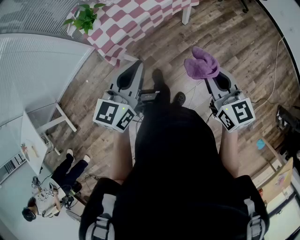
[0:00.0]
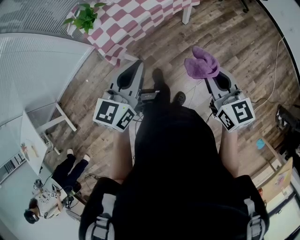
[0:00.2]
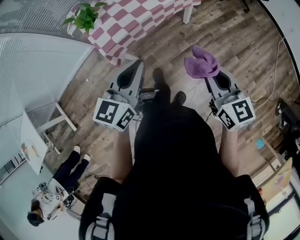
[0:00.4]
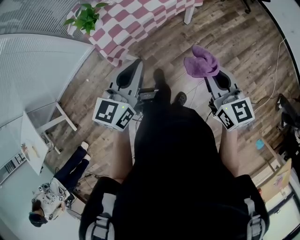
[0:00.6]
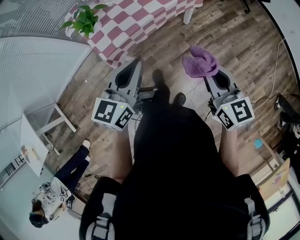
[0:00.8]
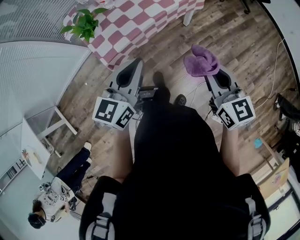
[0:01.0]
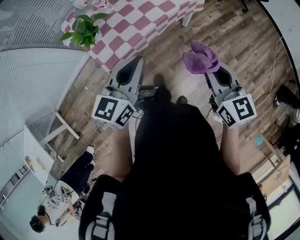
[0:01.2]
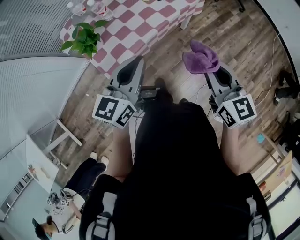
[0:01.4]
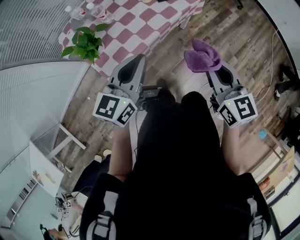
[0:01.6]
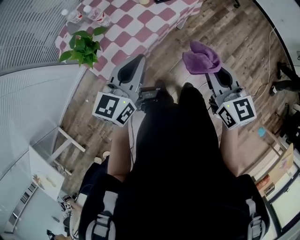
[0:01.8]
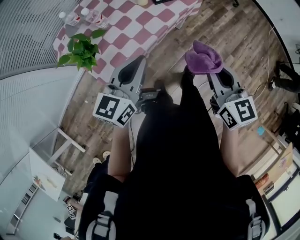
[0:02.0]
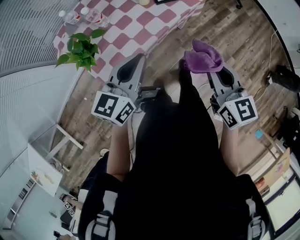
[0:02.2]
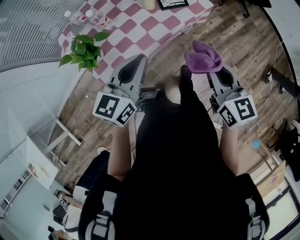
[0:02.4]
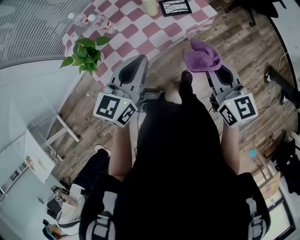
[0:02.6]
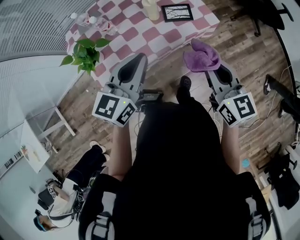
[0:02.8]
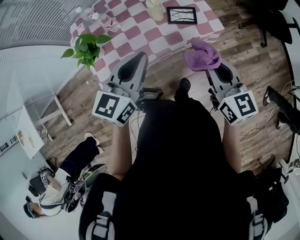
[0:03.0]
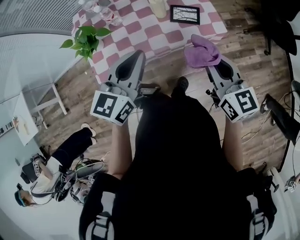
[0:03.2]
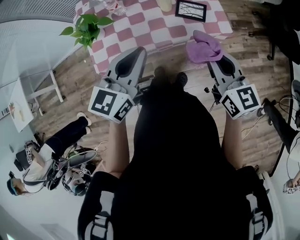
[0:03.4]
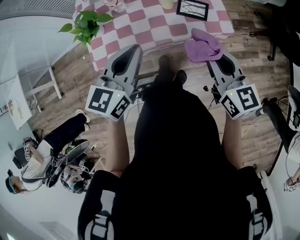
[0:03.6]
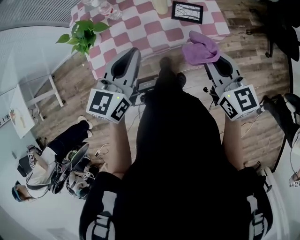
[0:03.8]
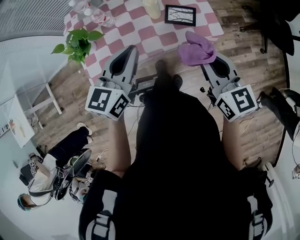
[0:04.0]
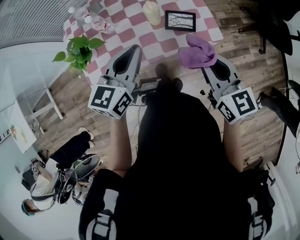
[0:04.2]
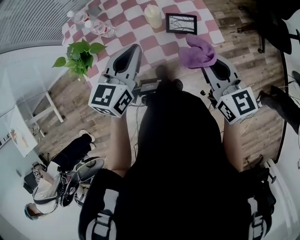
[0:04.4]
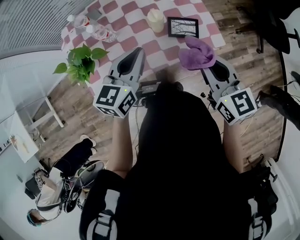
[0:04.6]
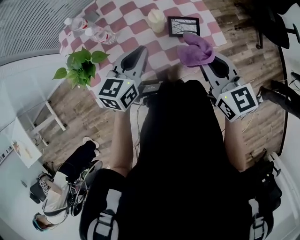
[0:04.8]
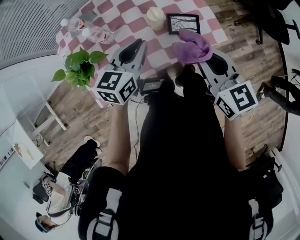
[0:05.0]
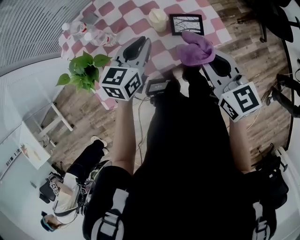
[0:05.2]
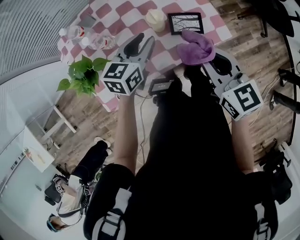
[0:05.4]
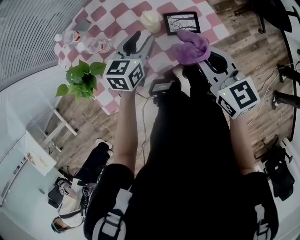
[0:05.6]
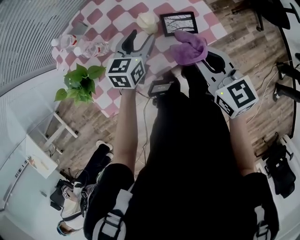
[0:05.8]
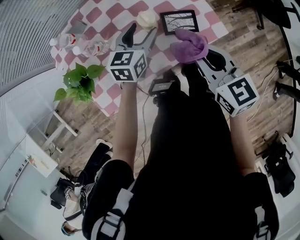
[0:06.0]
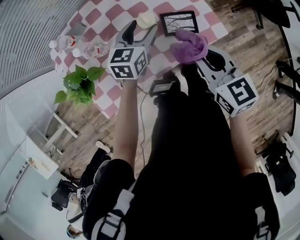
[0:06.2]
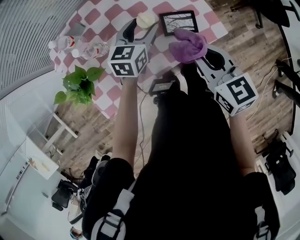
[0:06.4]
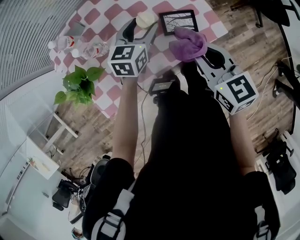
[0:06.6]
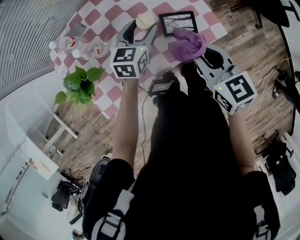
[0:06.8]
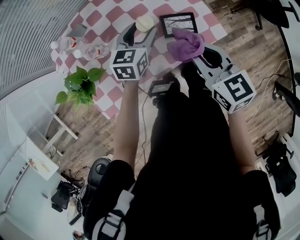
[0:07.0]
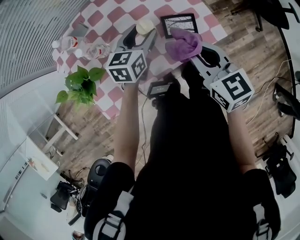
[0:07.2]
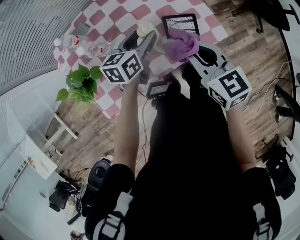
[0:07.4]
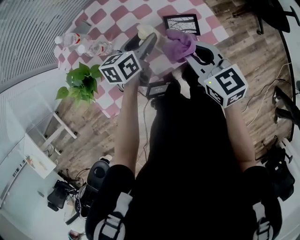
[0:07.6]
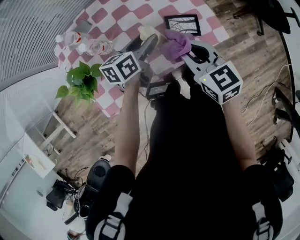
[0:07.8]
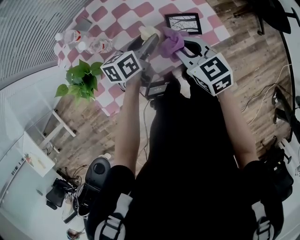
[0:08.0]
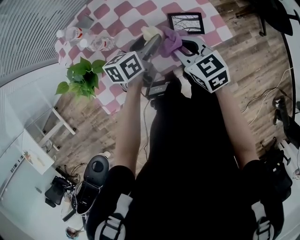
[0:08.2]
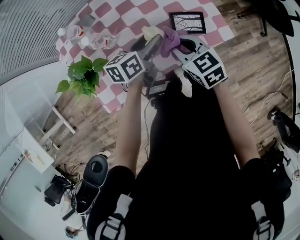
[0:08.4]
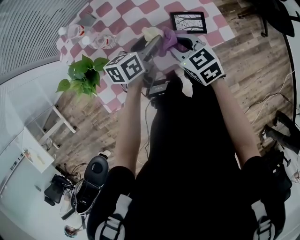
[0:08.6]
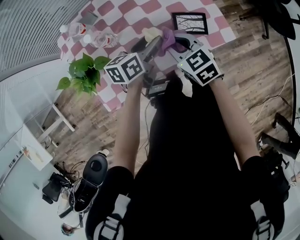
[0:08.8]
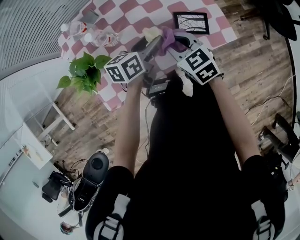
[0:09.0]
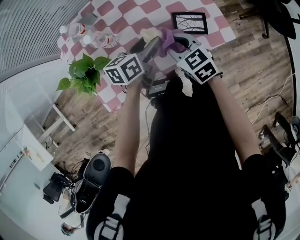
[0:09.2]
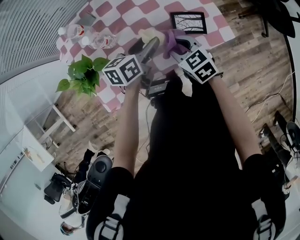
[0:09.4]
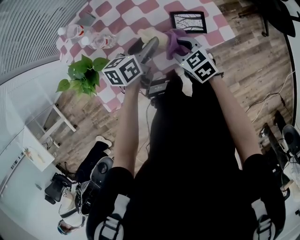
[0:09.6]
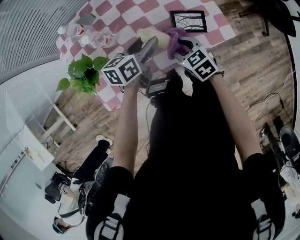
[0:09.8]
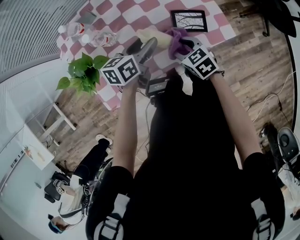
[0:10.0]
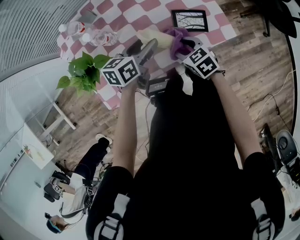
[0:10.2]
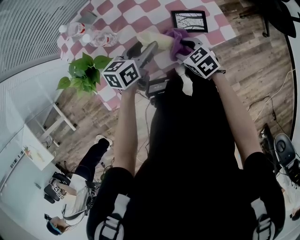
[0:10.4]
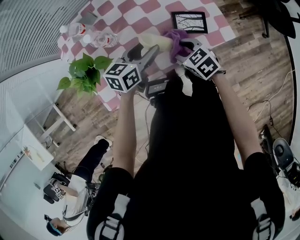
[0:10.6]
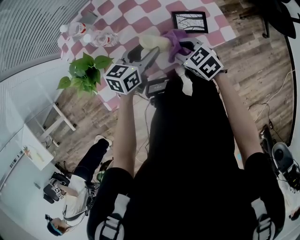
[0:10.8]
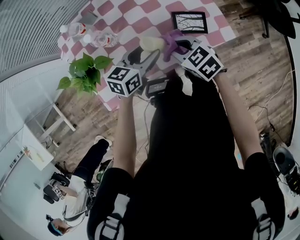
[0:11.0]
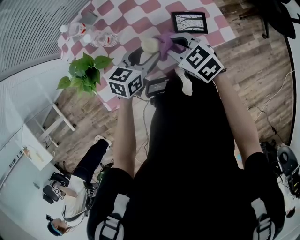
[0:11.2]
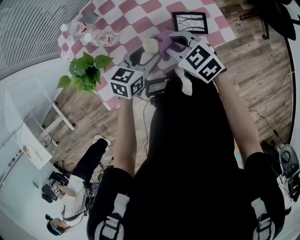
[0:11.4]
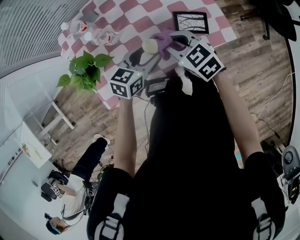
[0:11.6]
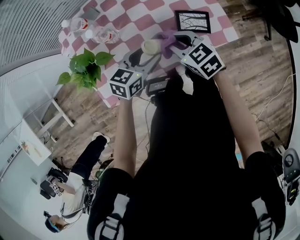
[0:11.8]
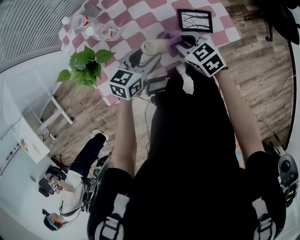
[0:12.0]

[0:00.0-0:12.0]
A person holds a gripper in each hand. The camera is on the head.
0:00.0 to 0:01.6: The grippers both shift forward and to the left by approximately 20 cm.
0:01.6 to 0:03.0: The right gripper shifts some 20 cm forward, and changes its angle by approximately 20 degrees; the left gripper moves forward and to the right, some 15 cm.
0:03.0 to 0:04.4: The grippers both shift forward by about 10 cm.
0:04.4 to 0:06.0: The left gripper goes roughly 20 cm downward and forward, and opens up, while the right gripper heads forward and downward, covering about 10 cm.
0:06.0 to 0:07.6: The left gripper changes its angle by about 20 degrees.
0:07.6 to 0:09.0: The right gripper travels downward and to the left by roughly 10 cm.
0:09.0 to 0:10.4: The right gripper heads downward, covering approximately 10 cm, and opens.
0:10.4 to 0:12.0: The right gripper closes its fingers.

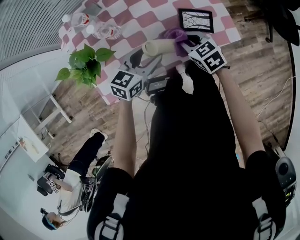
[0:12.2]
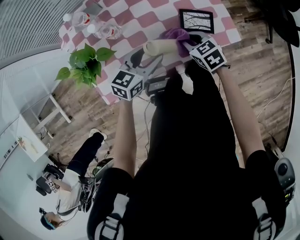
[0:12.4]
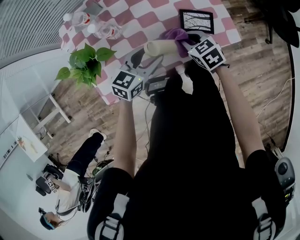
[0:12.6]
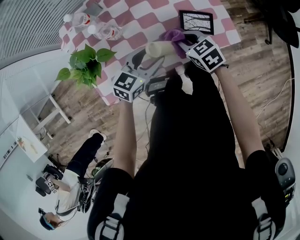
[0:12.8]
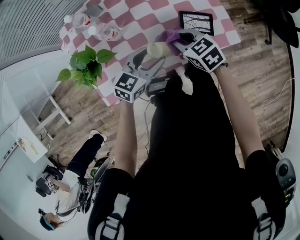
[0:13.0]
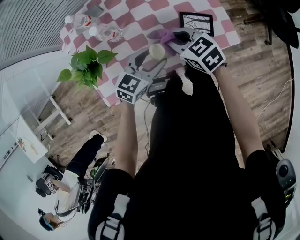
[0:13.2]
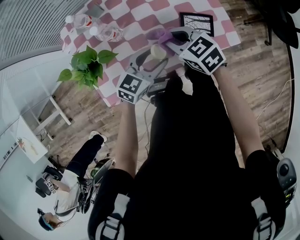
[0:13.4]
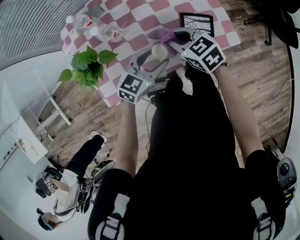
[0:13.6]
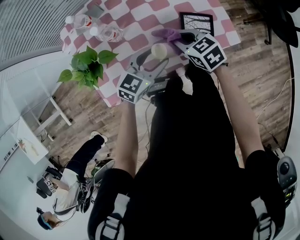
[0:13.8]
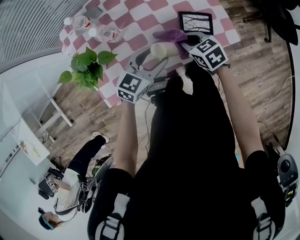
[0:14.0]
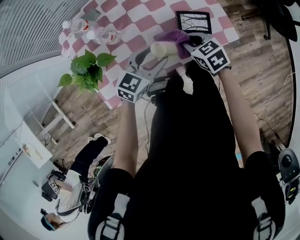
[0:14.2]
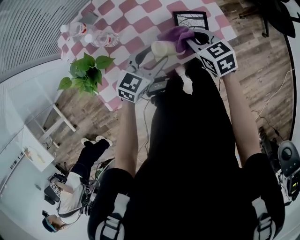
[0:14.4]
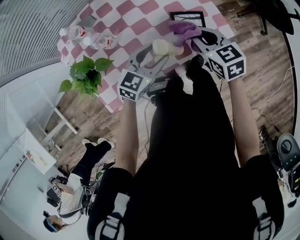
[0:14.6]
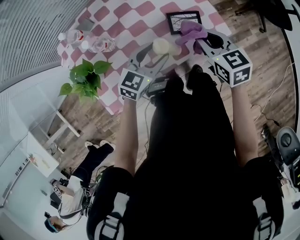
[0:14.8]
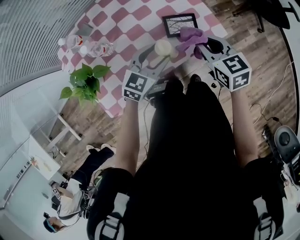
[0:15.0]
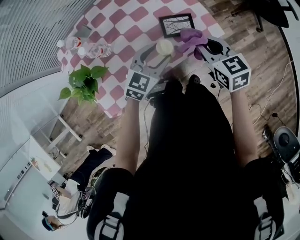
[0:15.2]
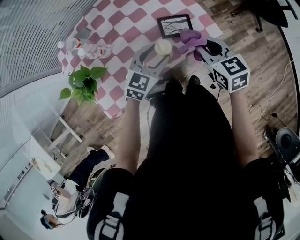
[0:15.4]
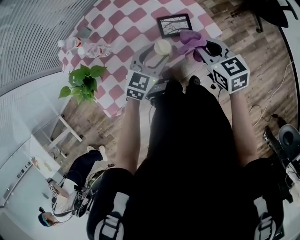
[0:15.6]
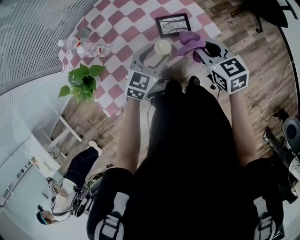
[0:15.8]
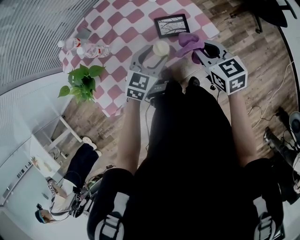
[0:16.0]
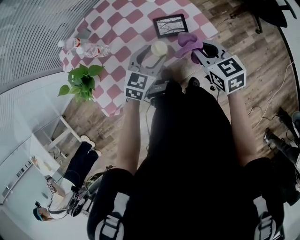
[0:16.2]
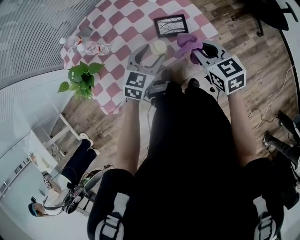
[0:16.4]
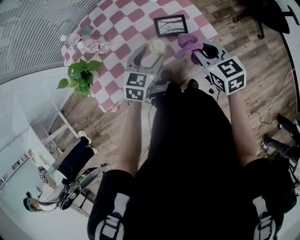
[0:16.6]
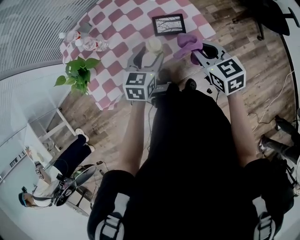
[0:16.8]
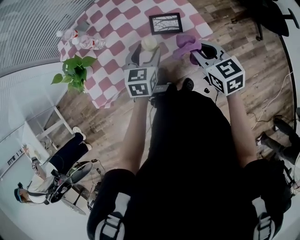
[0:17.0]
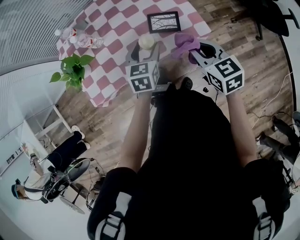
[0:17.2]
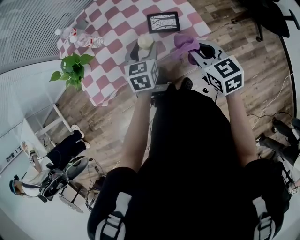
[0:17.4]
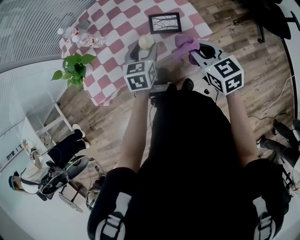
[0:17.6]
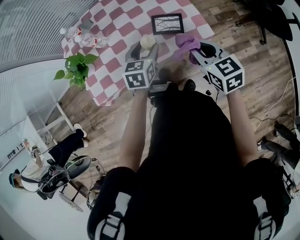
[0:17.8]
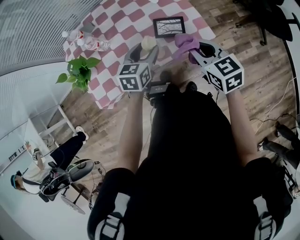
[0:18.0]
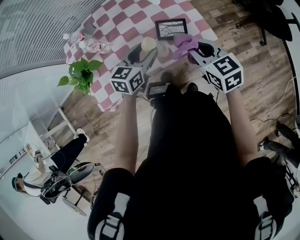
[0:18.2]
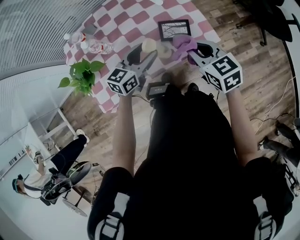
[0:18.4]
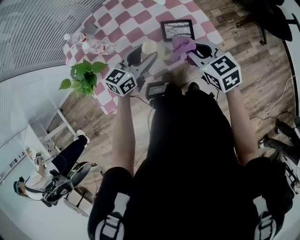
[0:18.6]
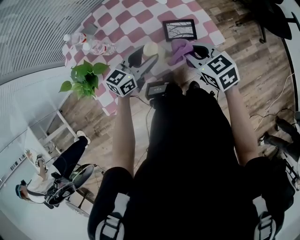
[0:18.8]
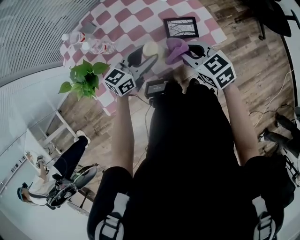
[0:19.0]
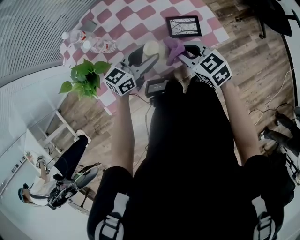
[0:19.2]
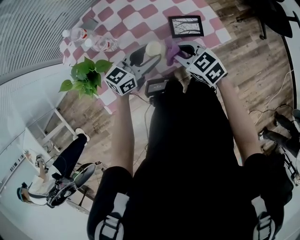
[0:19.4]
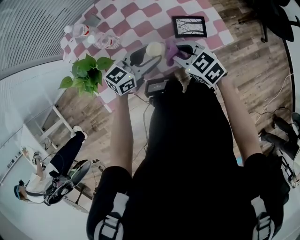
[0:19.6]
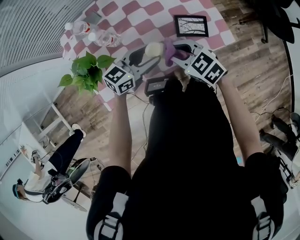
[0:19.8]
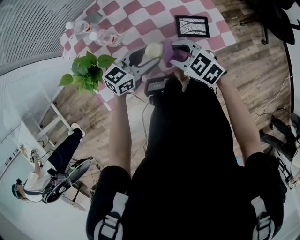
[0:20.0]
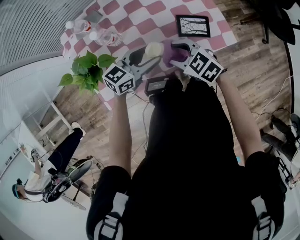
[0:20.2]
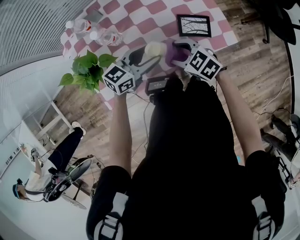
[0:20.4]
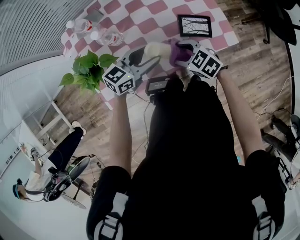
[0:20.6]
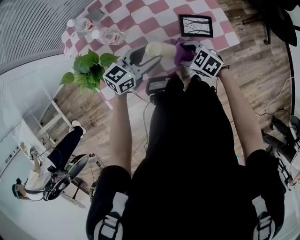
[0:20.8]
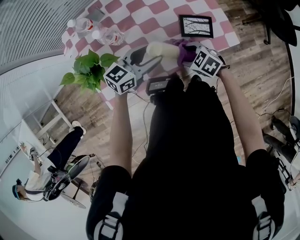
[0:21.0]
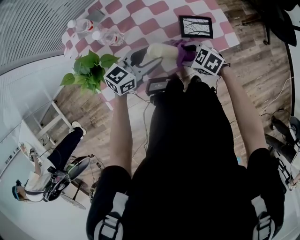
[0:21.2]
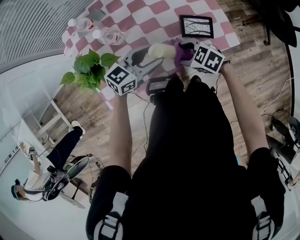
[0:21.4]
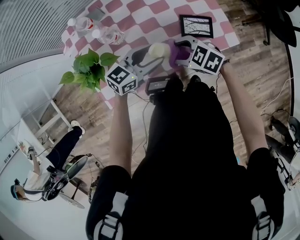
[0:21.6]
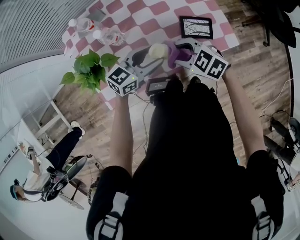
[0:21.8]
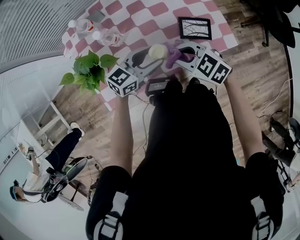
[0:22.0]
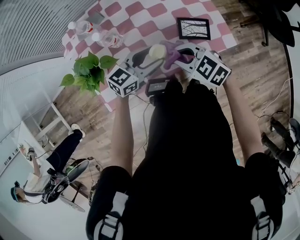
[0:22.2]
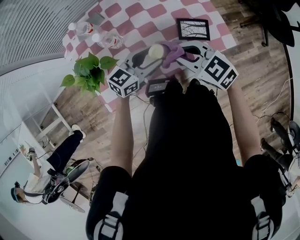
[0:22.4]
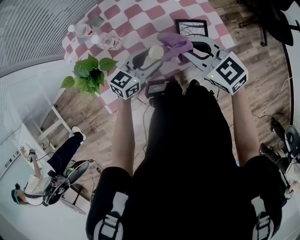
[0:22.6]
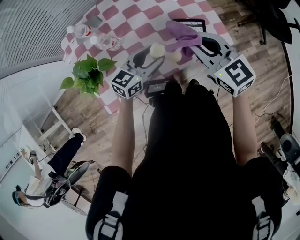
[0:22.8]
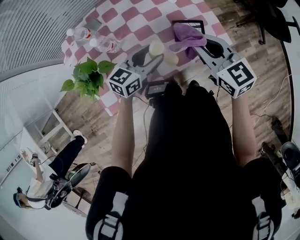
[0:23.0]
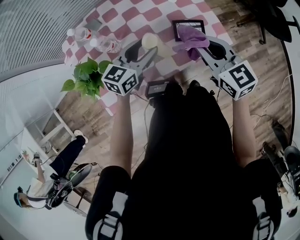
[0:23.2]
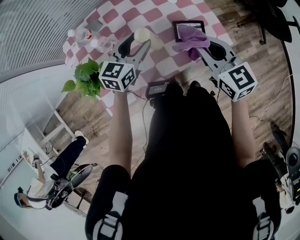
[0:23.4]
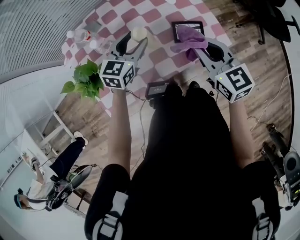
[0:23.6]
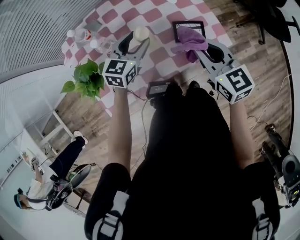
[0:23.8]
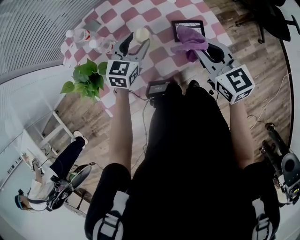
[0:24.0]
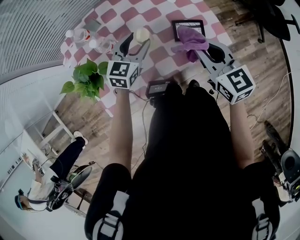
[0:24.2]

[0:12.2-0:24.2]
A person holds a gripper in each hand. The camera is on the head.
0:13.8 to 0:15.2: The right gripper heads to the right and upward, covering some 20 cm, and turns by some 30 degrees, while the left gripper shifts roughly 10 cm to the right.
0:15.2 to 0:16.6: The right gripper shifts by roughly 5 cm.
0:18.2 to 0:19.8: The left gripper goes some 10 cm to the left, and swivels some 20 degrees. Meanwhile the right gripper shifts some 20 cm to the left and downward, and changes its angle by some 30 degrees.
0:19.8 to 0:21.2: The right gripper shifts about 10 cm downward, and opens its fingers.
0:21.2 to 0:22.6: The right gripper heads upward, covering some 20 cm, swivels about 30 degrees, and closes.
0:22.6 to 0:24.2: The right gripper shifts some 5 cm to the right, and swivels some 20 degrees, while the left gripper goes about 10 cm forward, and swivels approximately 20 degrees.
